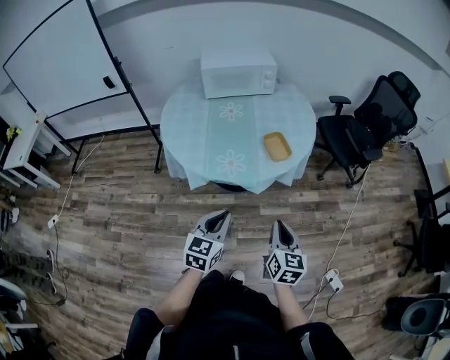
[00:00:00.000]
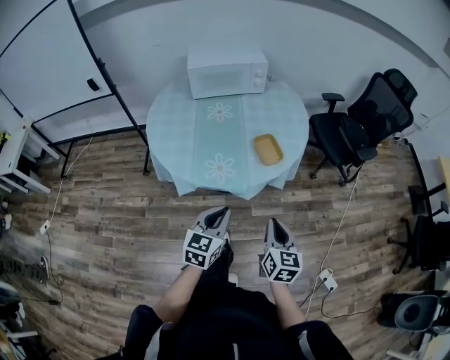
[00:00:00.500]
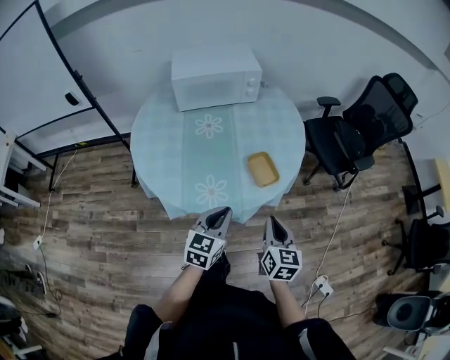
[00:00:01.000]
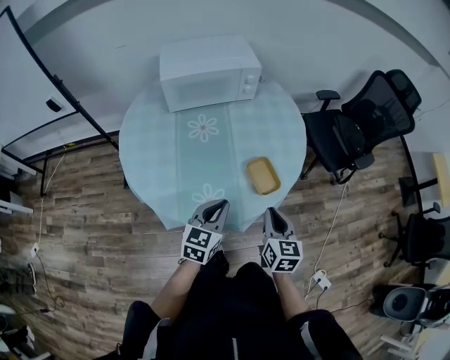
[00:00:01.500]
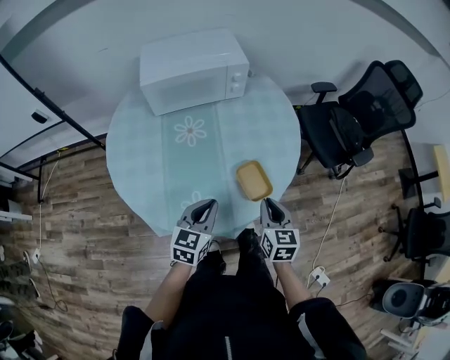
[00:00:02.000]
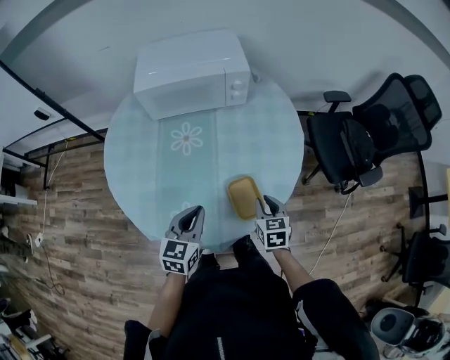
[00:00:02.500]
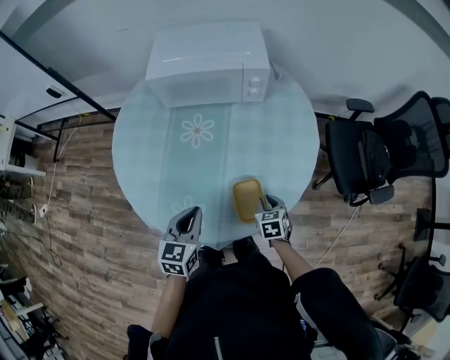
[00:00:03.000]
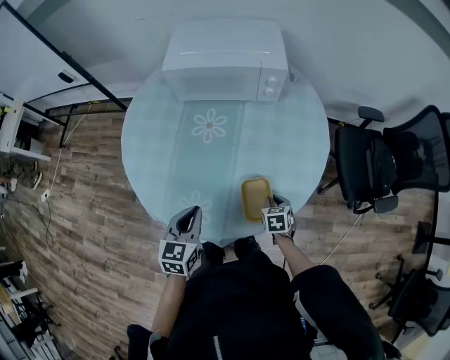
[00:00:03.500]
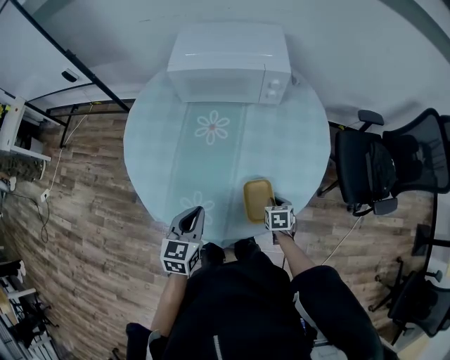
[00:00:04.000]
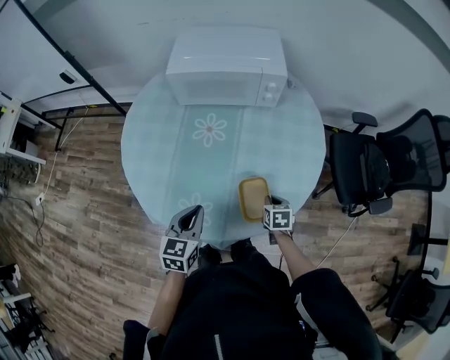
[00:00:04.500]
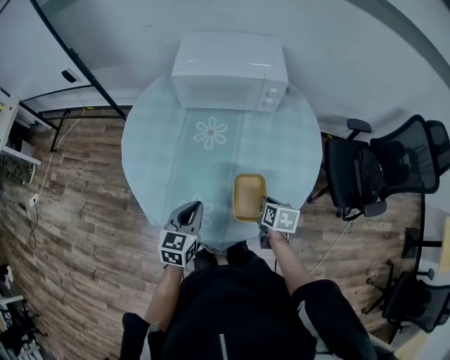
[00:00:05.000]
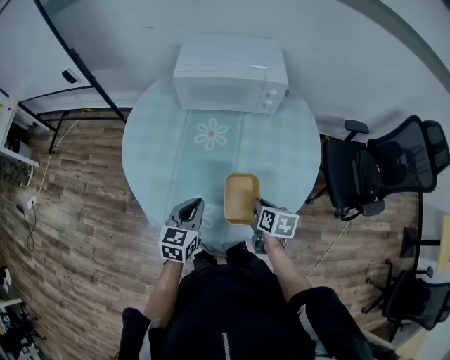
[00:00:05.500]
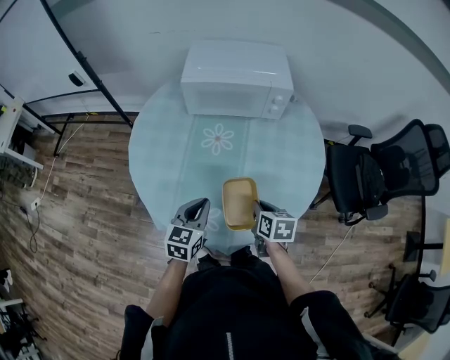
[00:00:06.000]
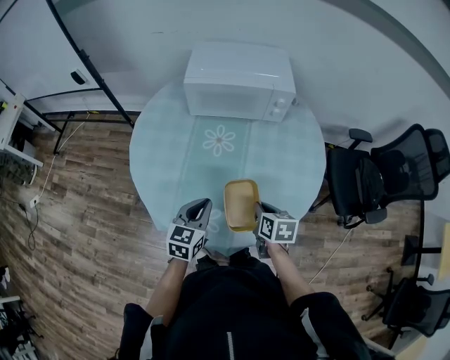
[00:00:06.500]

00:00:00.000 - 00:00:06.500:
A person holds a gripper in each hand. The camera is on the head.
00:00:00.000 - 00:00:02.000: The grippers both shift forward by some 35 cm.
00:00:02.000 - 00:00:04.500: The left gripper changes its angle by approximately 30 degrees. Meanwhile the right gripper goes roughly 20 cm downward and forward, and rotates about 30 degrees.
00:00:04.500 - 00:00:06.500: The right gripper travels upward and to the left by some 15 cm.

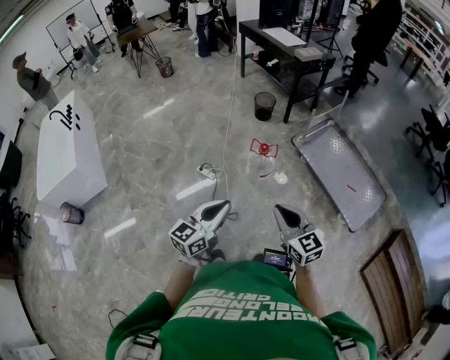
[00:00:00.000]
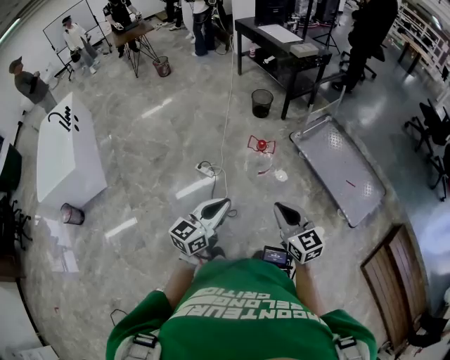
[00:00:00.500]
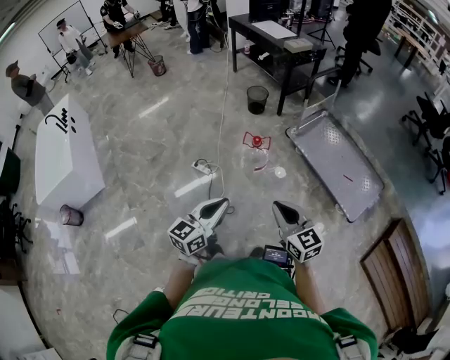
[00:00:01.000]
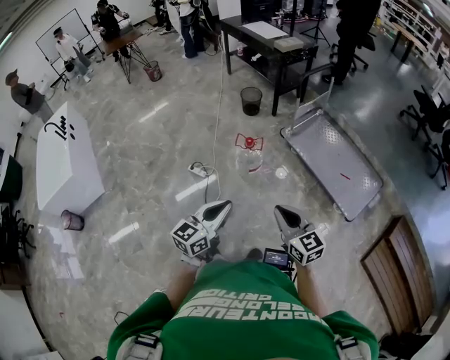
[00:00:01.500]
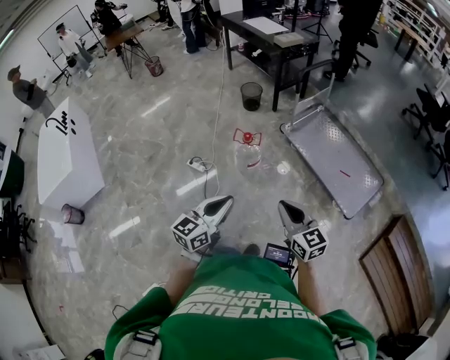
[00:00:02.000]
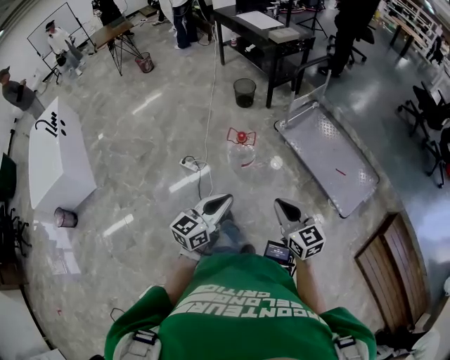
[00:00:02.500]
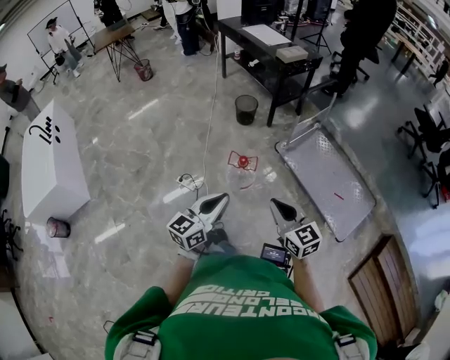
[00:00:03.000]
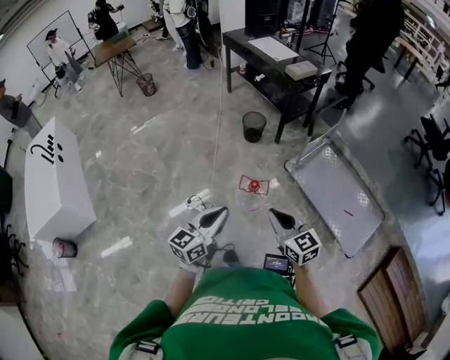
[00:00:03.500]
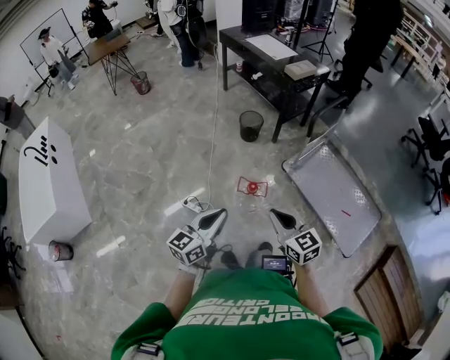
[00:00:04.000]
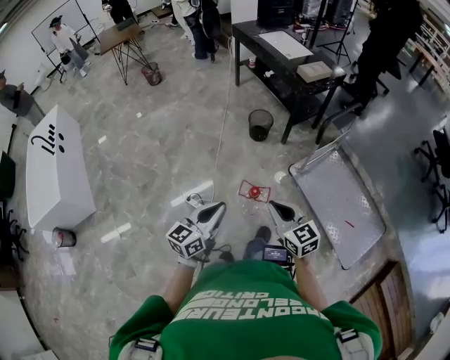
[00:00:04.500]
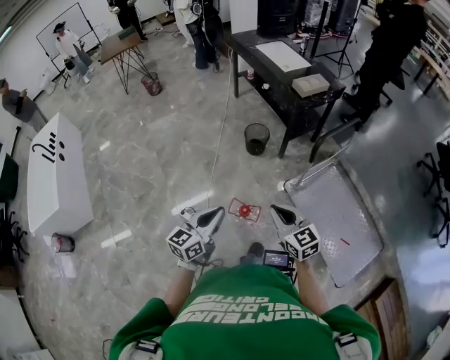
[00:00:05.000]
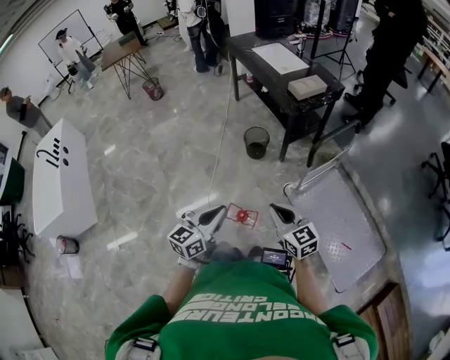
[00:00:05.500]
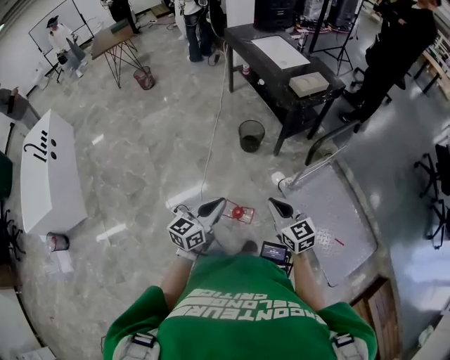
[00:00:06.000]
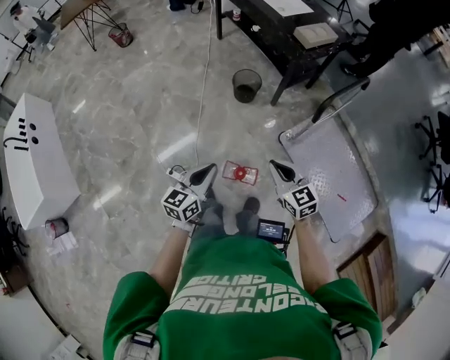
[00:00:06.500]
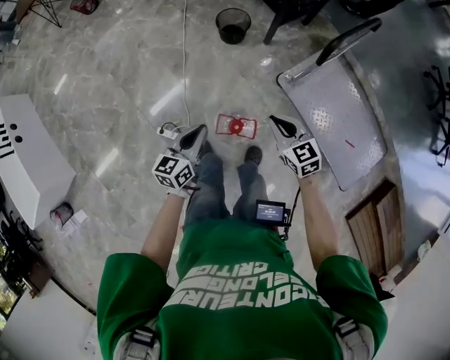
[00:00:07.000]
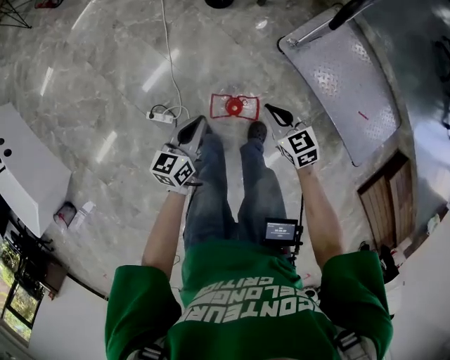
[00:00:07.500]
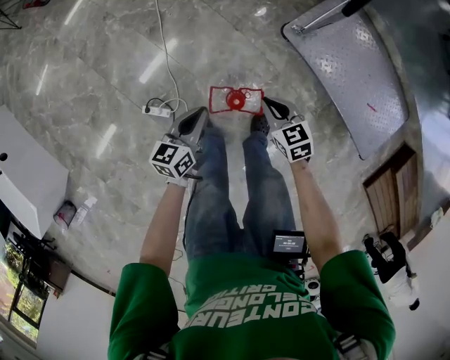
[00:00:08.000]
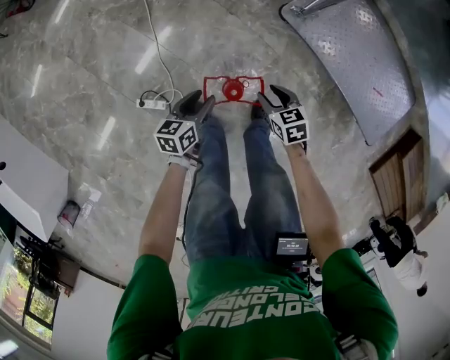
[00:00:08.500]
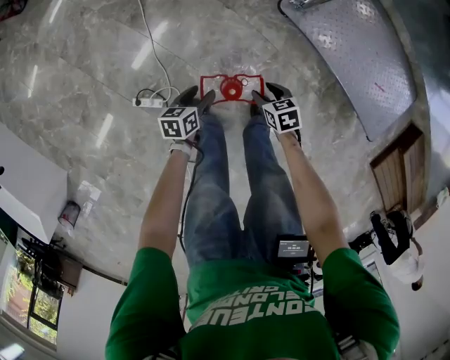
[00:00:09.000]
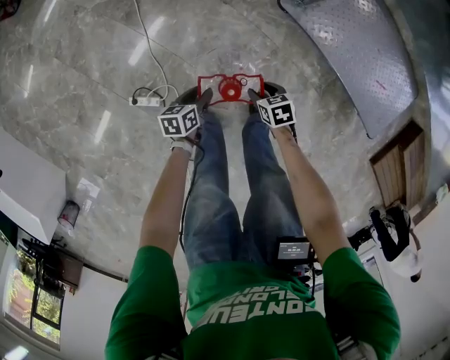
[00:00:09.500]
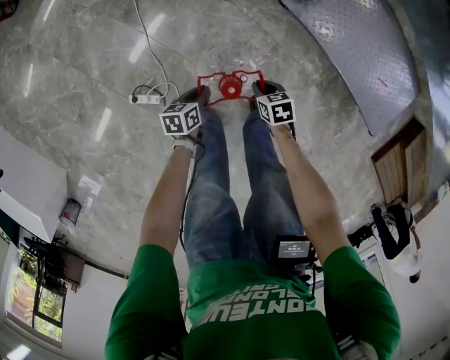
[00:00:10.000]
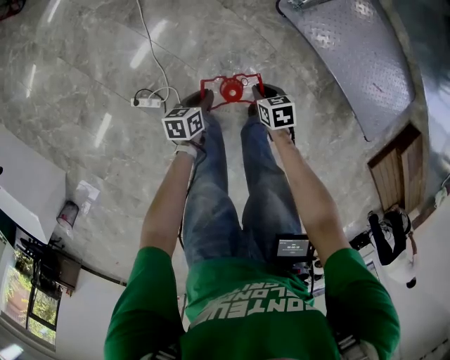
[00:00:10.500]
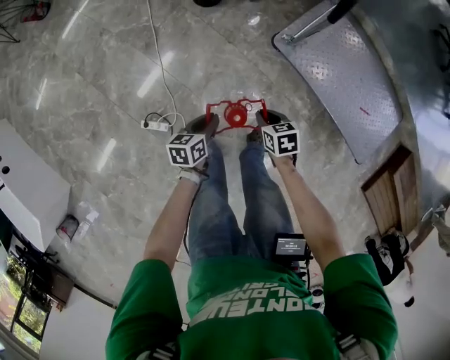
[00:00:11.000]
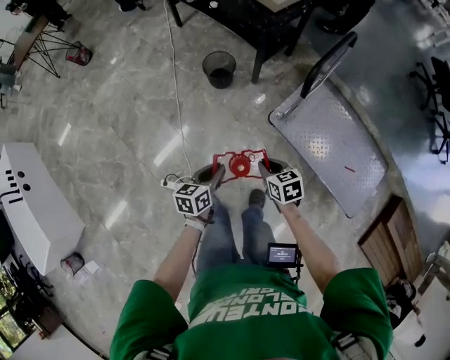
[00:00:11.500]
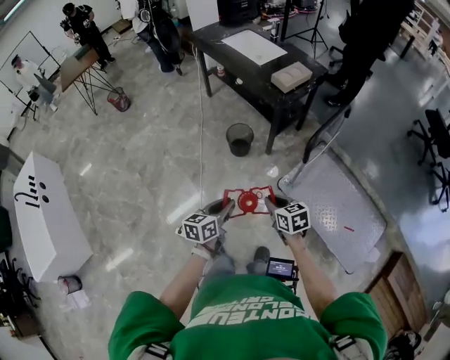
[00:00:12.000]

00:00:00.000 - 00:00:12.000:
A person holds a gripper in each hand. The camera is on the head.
00:00:00.000 - 00:00:02.000: The grippers both shift to the right by roughly 15 cm.
00:00:02.000 - 00:00:04.000: Both grippers travel together forward and to the left, approximately 30 cm.
00:00:04.000 - 00:00:06.000: Both grippers travel together forward and to the right, about 25 cm.
00:00:06.000 - 00:00:08.000: The grippers both shift downward by about 35 cm. The right gripper changes its angle by about 30 degrees. Meanwhile the left gripper changes its angle by approximately 20 degrees.
00:00:08.000 - 00:00:10.000: Both grippers move downward, roughly 20 cm. The left gripper swivels about 30 degrees, and opens, then closes once more. The right gripper turns by about 30 degrees, and opens, then closes again.
00:00:10.000 - 00:00:12.000: Both grippers travel together upward, about 50 cm. The left gripper rotates some 30 degrees; the right gripper swivels some 30 degrees.

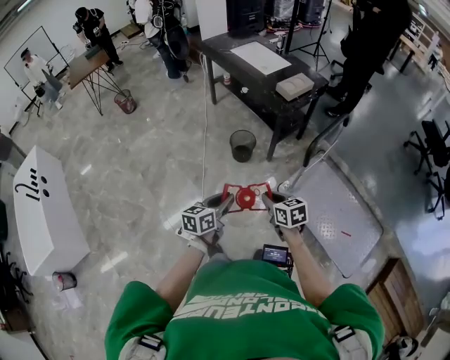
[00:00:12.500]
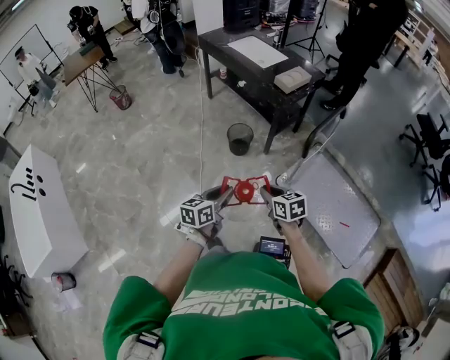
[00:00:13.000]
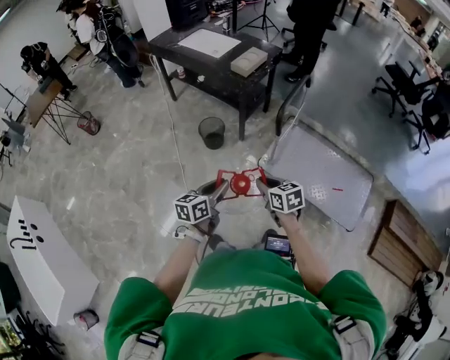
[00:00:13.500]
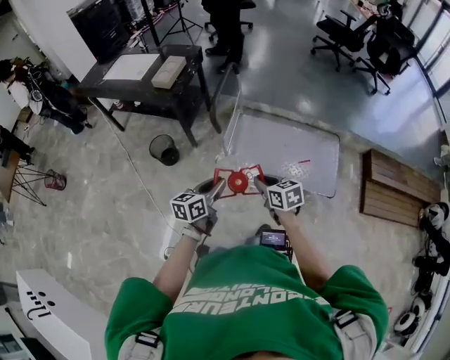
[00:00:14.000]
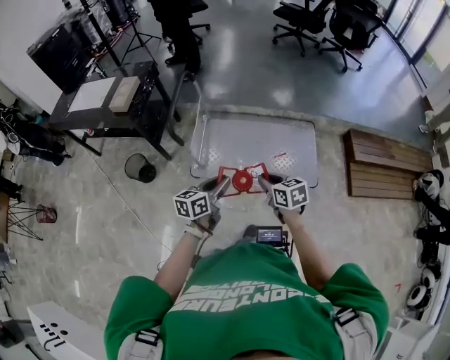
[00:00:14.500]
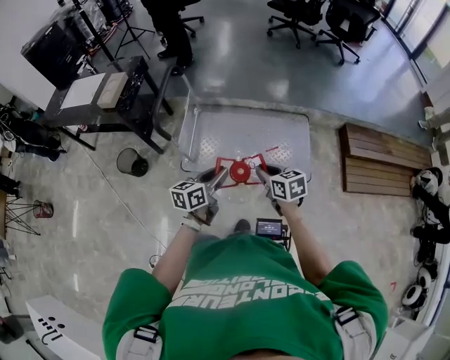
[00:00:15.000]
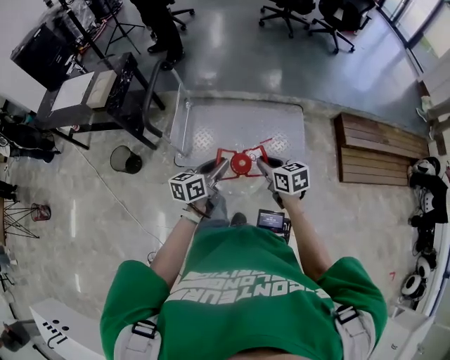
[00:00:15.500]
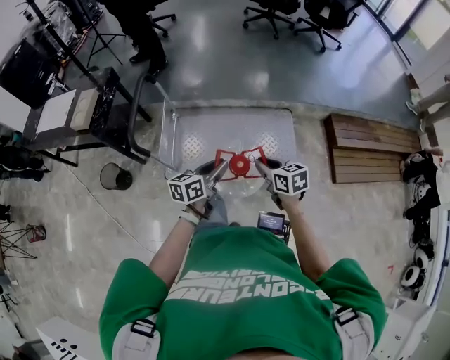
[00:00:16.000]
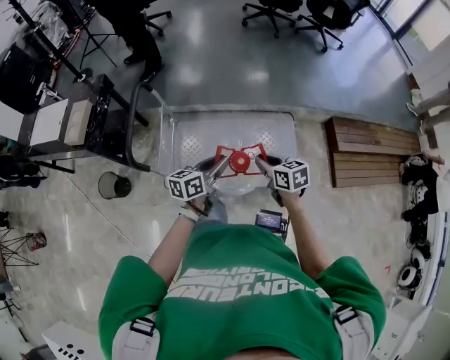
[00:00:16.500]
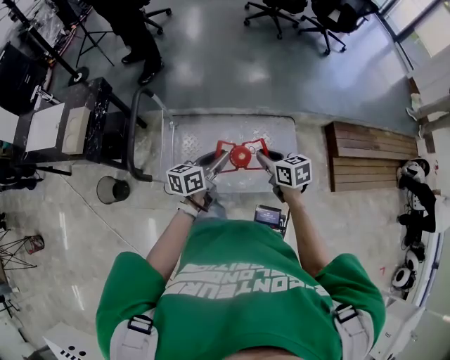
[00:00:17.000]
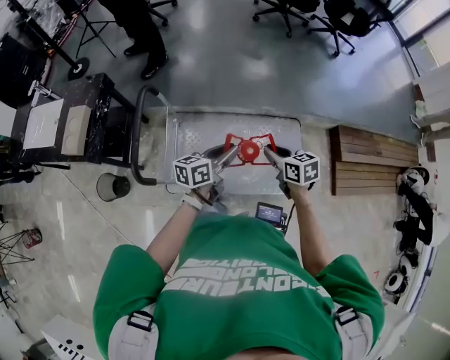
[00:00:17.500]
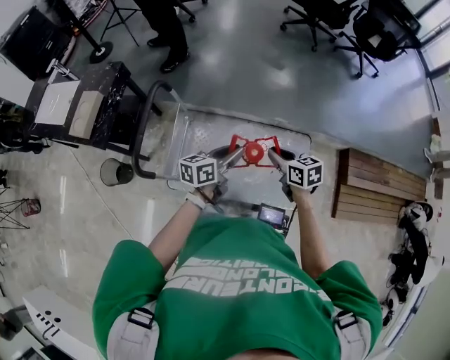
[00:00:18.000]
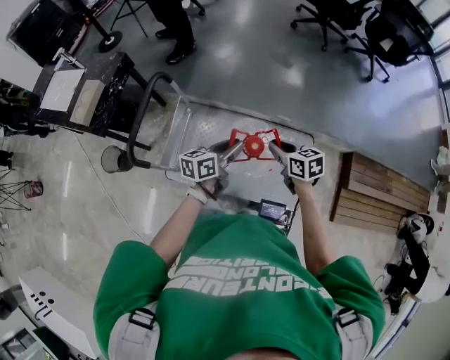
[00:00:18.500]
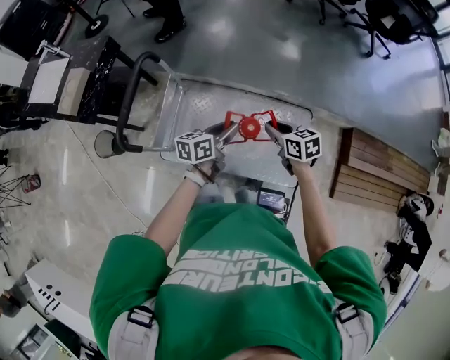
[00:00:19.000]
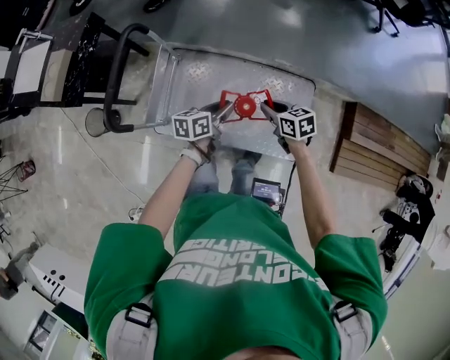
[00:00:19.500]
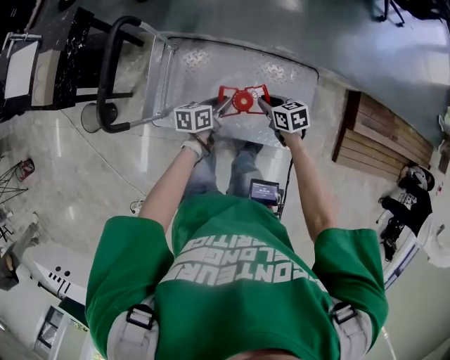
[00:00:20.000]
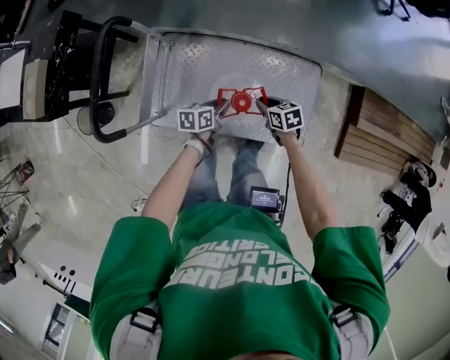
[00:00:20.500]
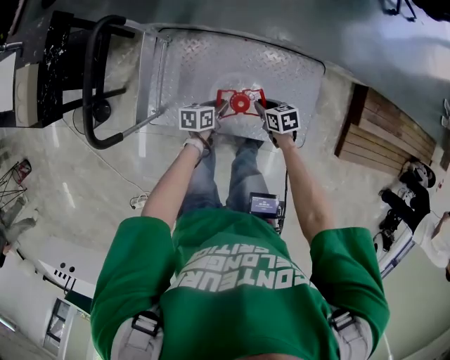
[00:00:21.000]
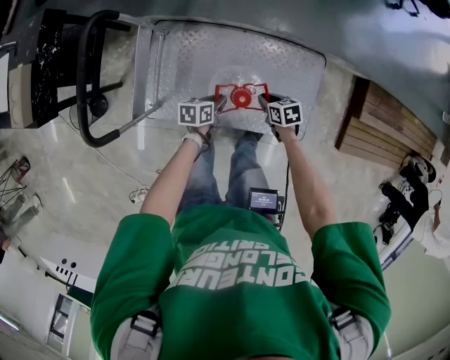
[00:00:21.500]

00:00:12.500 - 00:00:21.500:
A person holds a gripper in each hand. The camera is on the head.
00:00:12.500 - 00:00:14.500: The two grippers travel together, about 40 cm. The left gripper swivels roughly 50 degrees; the right gripper changes its angle by about 40 degrees.
00:00:14.500 - 00:00:17.000: Both grippers travel together forward, some 30 cm.
00:00:17.000 - 00:00:19.500: Both grippers move downward and forward, some 20 cm.
00:00:19.500 - 00:00:21.500: Both grippers travel together downward, some 20 cm. The left gripper swivels some 20 degrees.
